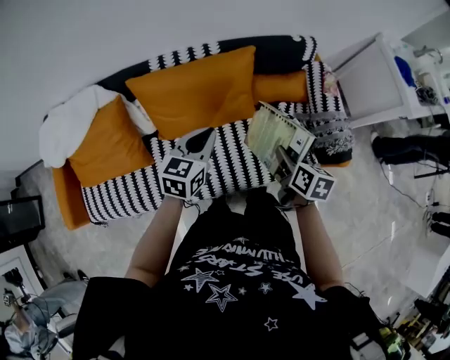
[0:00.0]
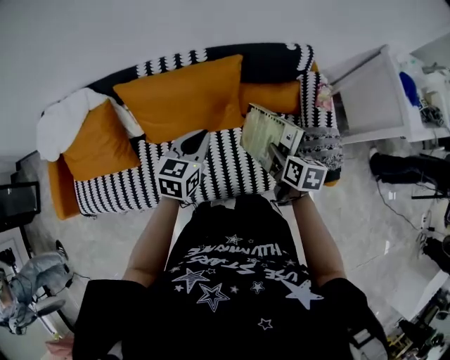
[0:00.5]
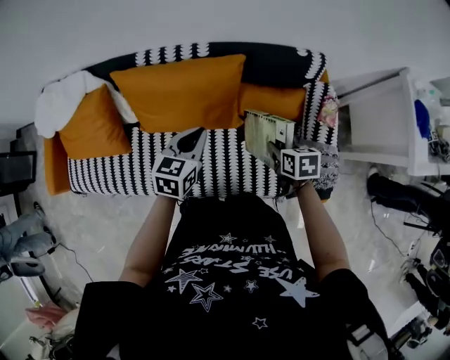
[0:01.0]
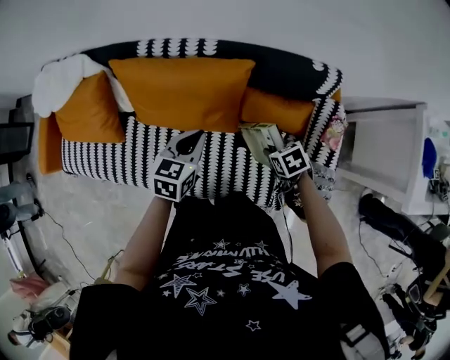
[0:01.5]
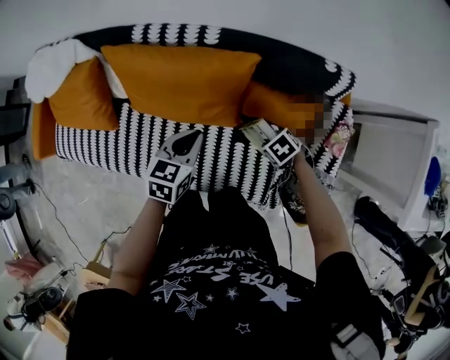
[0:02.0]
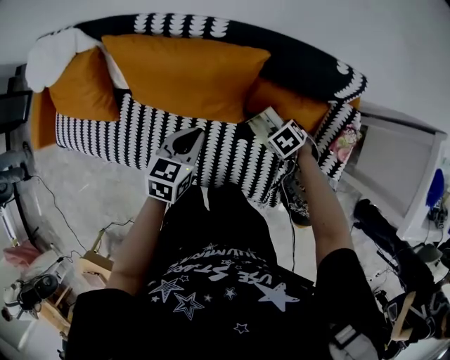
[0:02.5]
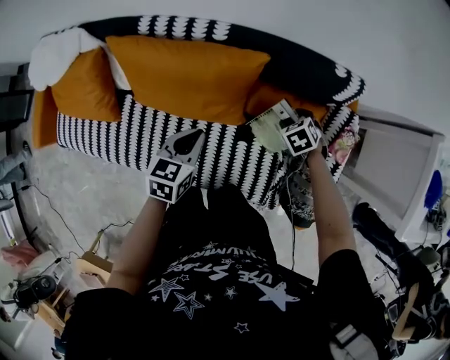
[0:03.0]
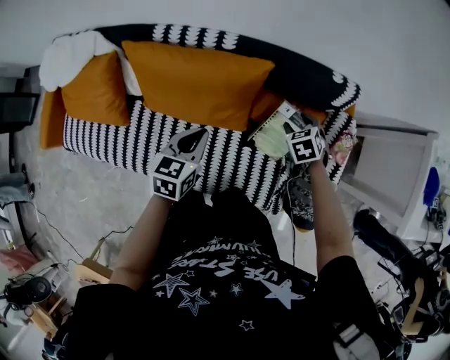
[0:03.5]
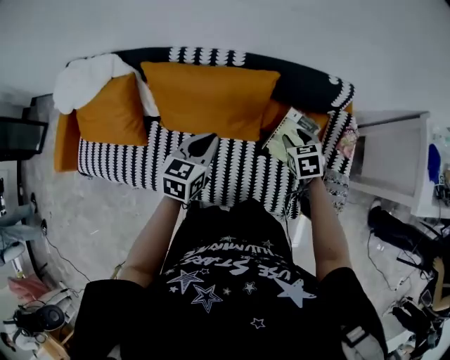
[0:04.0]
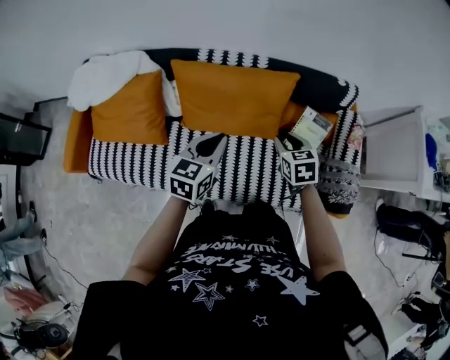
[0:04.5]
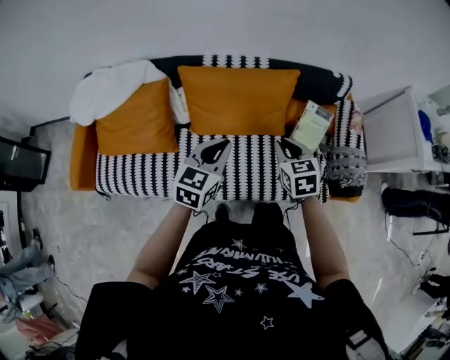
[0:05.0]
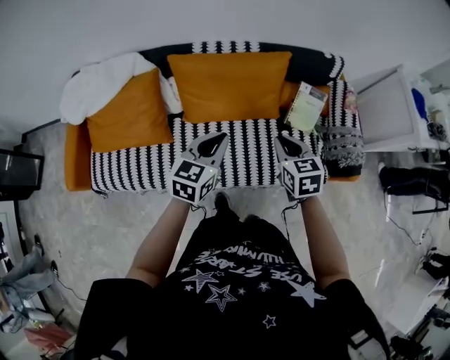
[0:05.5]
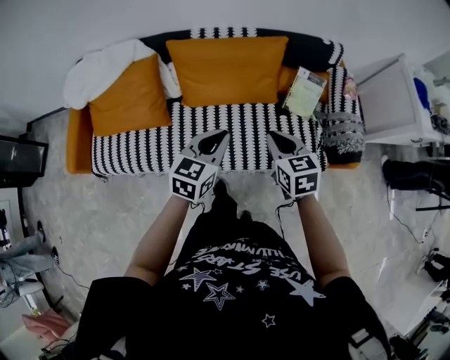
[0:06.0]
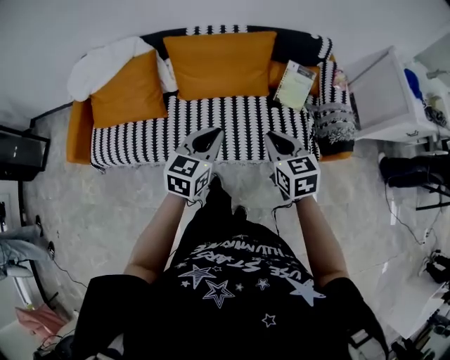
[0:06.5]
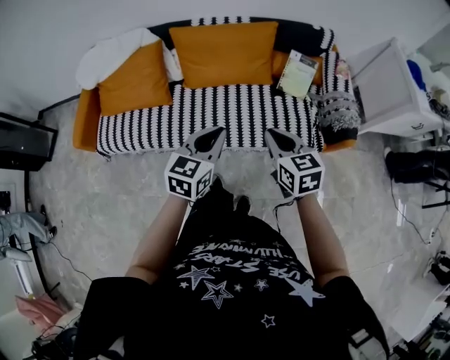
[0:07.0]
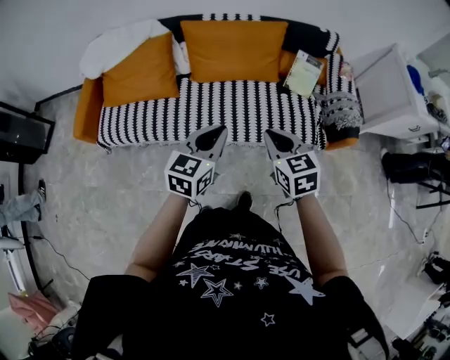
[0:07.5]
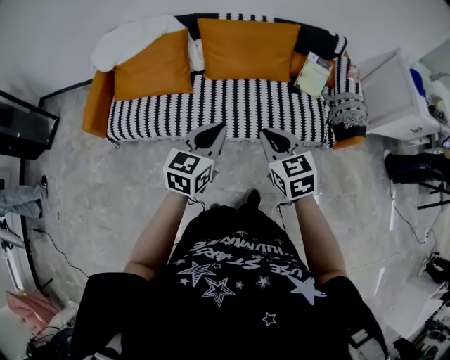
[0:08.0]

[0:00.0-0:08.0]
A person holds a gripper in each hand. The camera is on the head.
0:00.0 to 0:02.0: The right gripper is displaced downward by some 25 cm, and tips its fingers downward by some 40 degrees; the left gripper shifts by approximately 20 cm, and swivels about 30 degrees.
0:02.0 to 0:04.0: The left gripper travels upward by roughly 10 cm. The right gripper shifts about 15 cm upward, and swivels some 40 degrees.
0:04.0 to 0:06.0: The left gripper heads backward and to the left, covering roughly 25 cm. Meanwhile the right gripper goes about 35 cm backward, to the left and upward, changes its angle by about 20 degrees, and closes.
0:06.0 to 0:08.0: The left gripper heads backward, covering some 20 cm, while the right gripper goes approximately 25 cm backward and to the left.

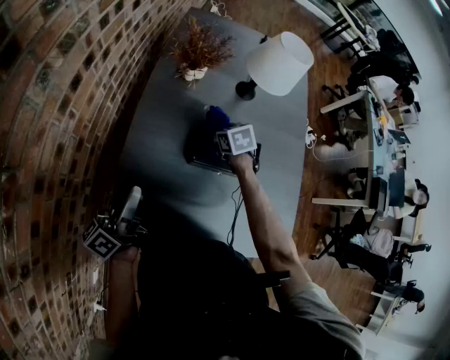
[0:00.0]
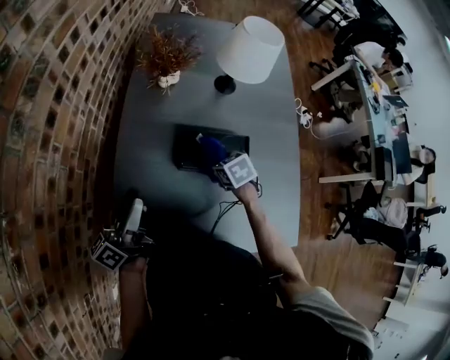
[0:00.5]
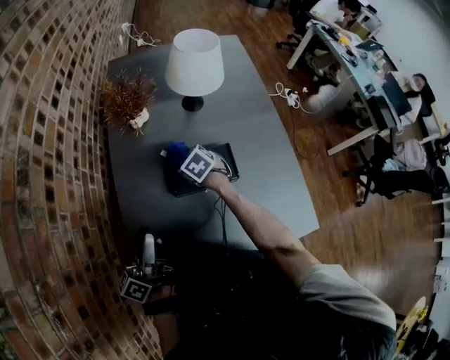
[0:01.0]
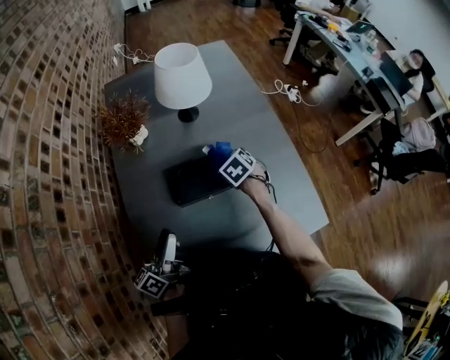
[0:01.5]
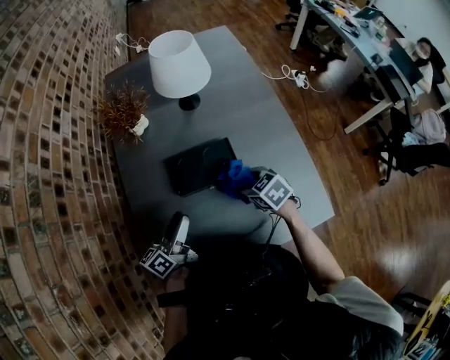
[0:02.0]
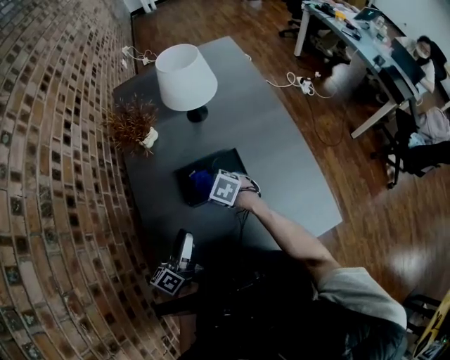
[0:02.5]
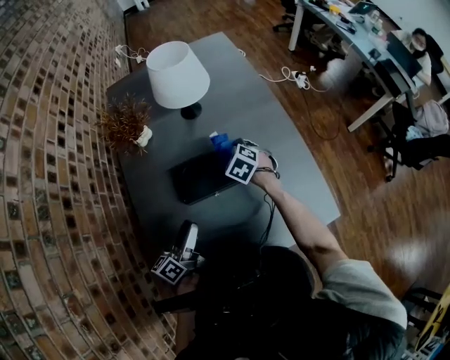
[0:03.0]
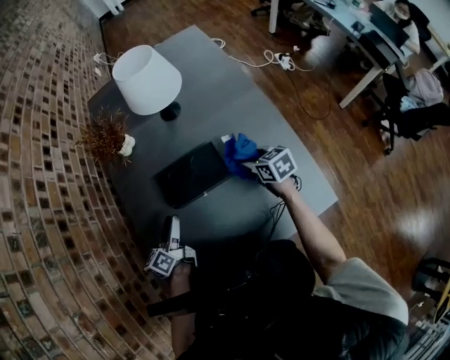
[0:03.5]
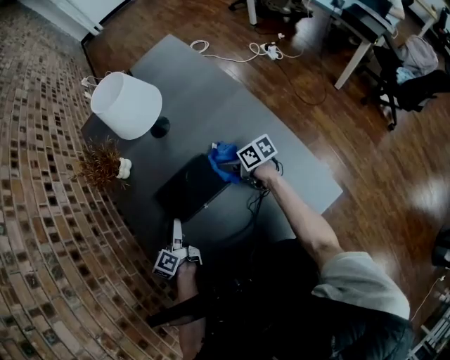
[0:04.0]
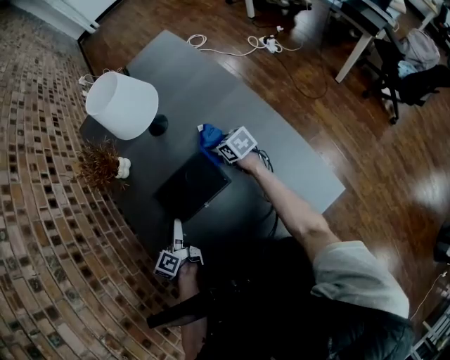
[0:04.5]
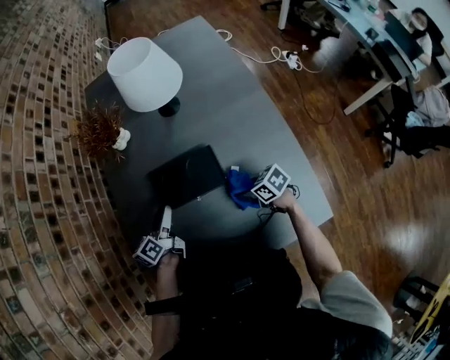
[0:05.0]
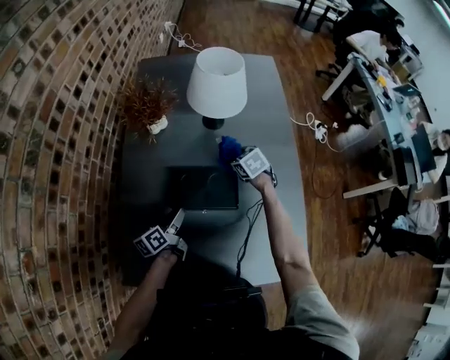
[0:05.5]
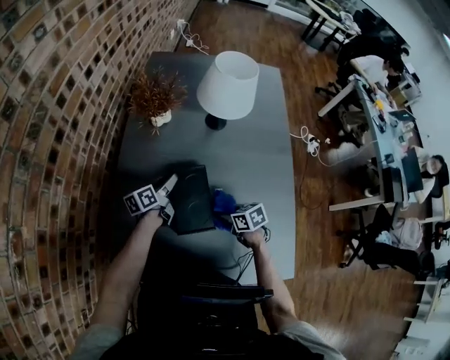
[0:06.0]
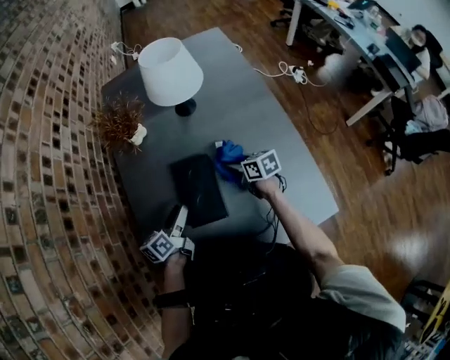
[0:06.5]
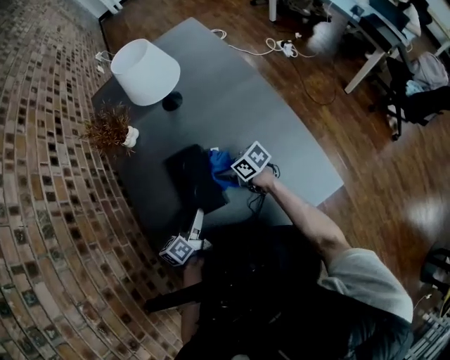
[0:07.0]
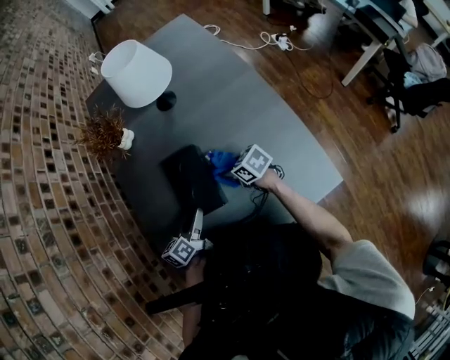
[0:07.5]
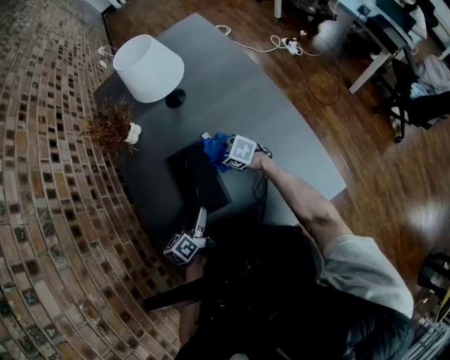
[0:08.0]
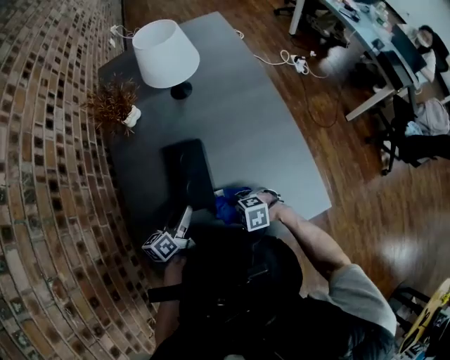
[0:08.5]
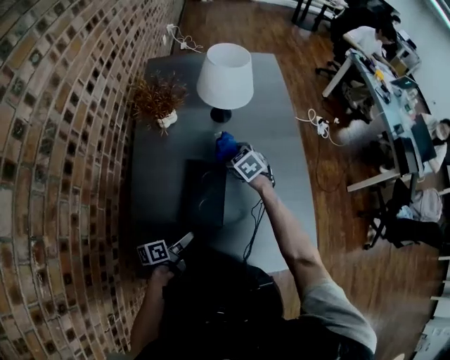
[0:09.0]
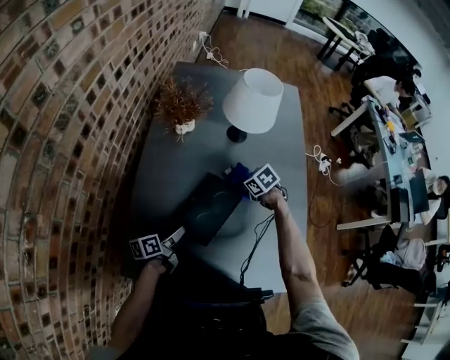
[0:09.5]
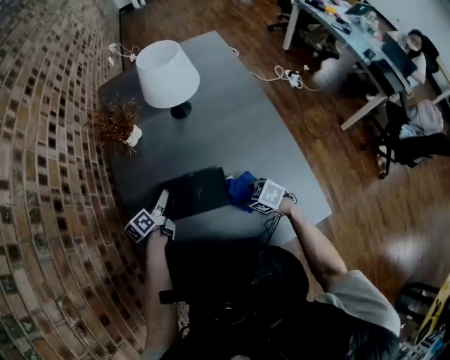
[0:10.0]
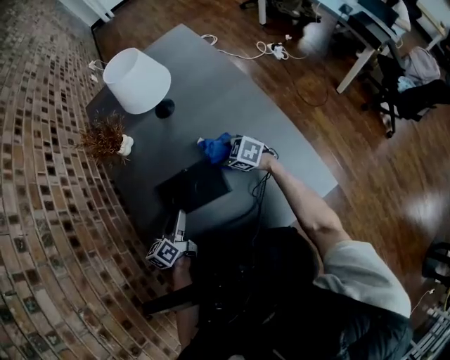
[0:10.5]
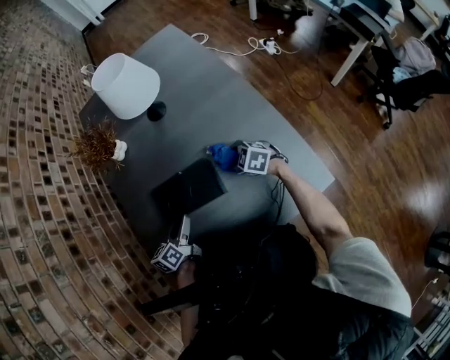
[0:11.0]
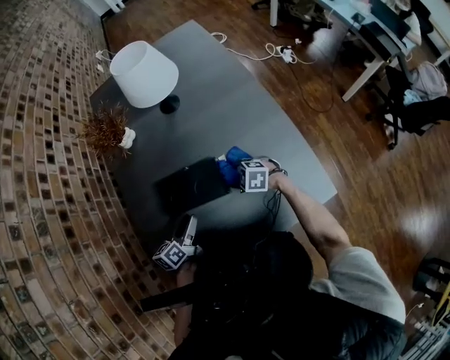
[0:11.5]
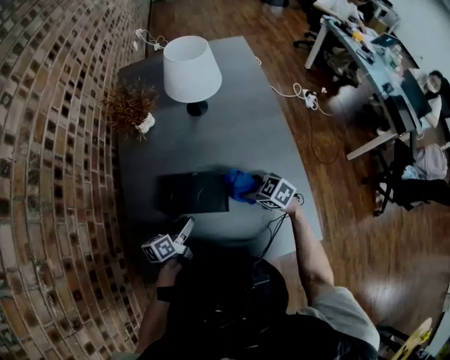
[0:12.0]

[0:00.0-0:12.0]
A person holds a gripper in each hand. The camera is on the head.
0:00.0 to 0:02.0: The left gripper is displaced to the right by roughly 20 cm, and rotates approximately 30 degrees; the right gripper swings forward and backward, approximately 20 cm each way, with 2 reversals.
0:02.0 to 0:04.0: The left gripper changes place by about 10 cm, while the right gripper ends up roughly 15 cm from where it was, and twists about 40 degrees clockwise, seen from behind.
0:04.0 to 0:06.0: The right gripper moves forward and backward over about 25 cm, changing direction 3 times, and swivels about 40 degrees. Meanwhile the left gripper shifts roughly 10 cm forward.
0:06.0 to 0:08.0: The left gripper shifts roughly 20 cm backward; the right gripper swings forward and backward, some 10 cm each way, with 2 reversals.
0:08.0 to 0:10.0: The left gripper changes place by about 15 cm; the right gripper goes upward and returns, some 10 cm each way.
0:10.0 to 0:12.0: The right gripper shifts approximately 5 cm upward, while the left gripper moves backward, approximately 15 cm.

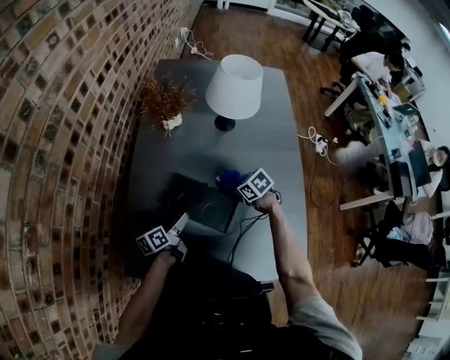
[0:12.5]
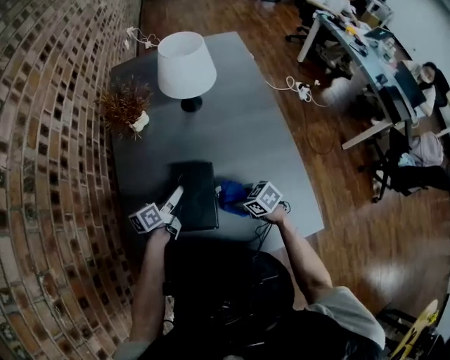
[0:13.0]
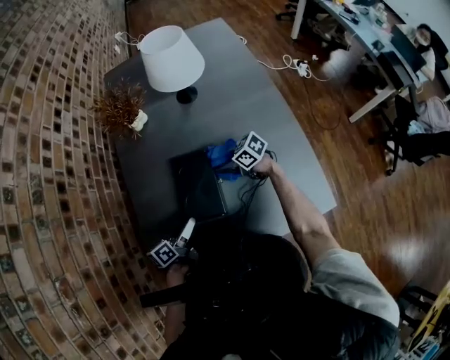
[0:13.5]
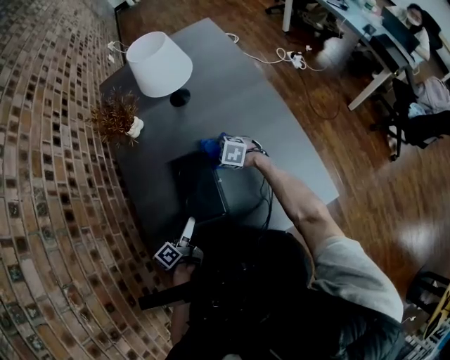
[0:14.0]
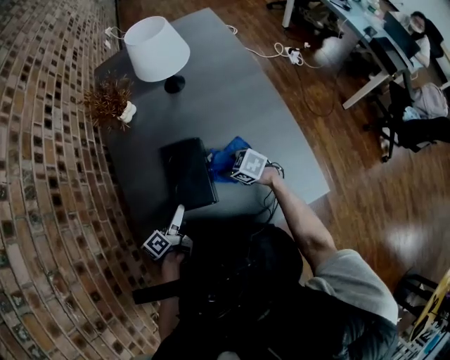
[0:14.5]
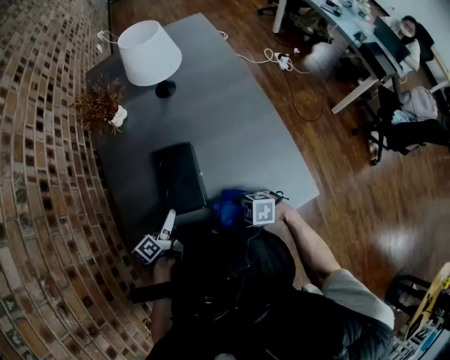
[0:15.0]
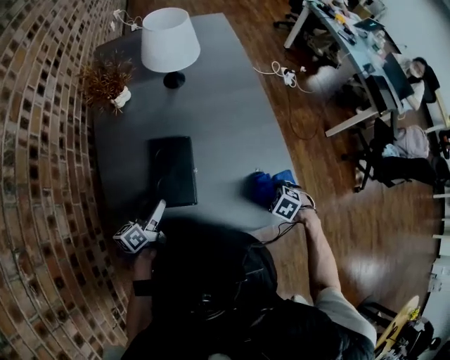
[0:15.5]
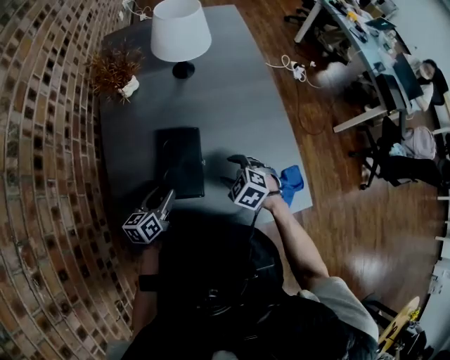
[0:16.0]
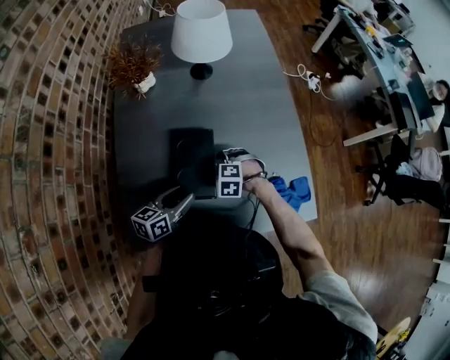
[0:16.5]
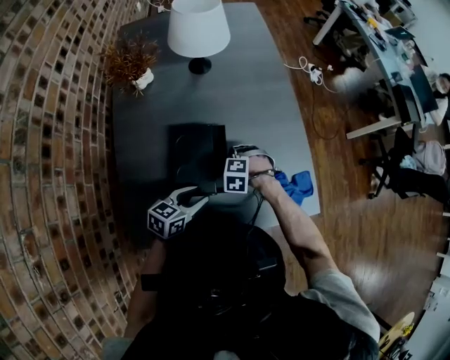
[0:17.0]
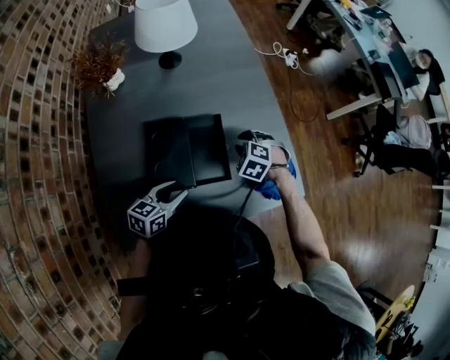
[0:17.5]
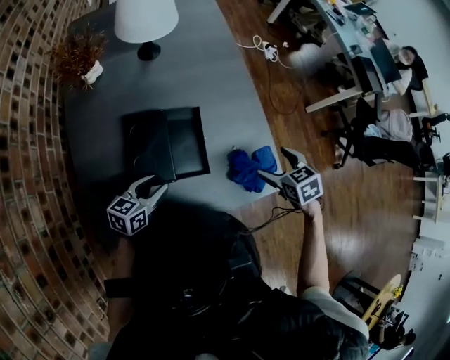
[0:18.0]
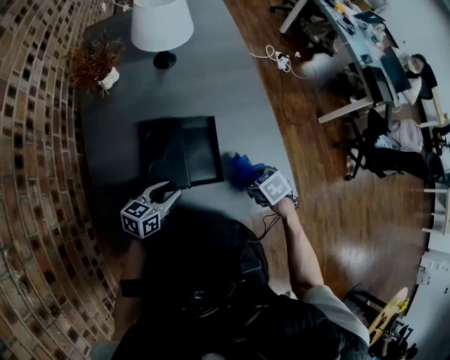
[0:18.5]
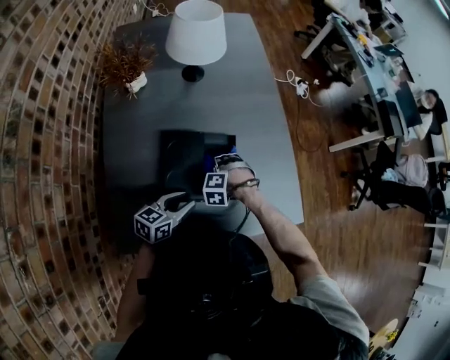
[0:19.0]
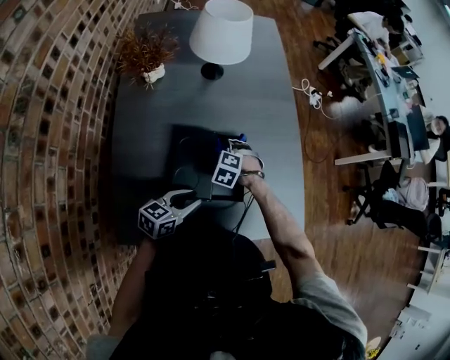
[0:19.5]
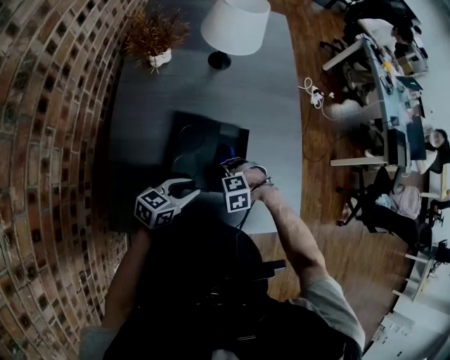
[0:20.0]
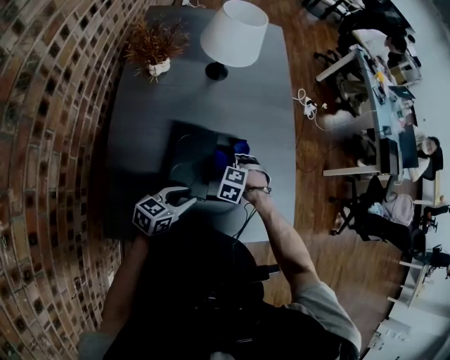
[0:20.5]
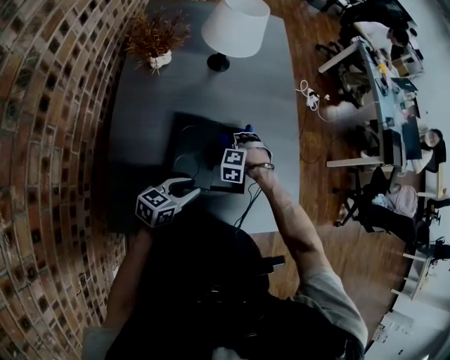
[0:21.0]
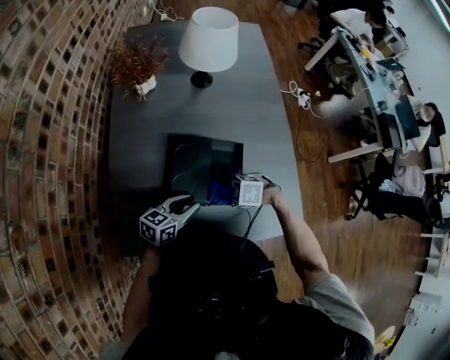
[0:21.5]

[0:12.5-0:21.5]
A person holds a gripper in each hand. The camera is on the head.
0:12.5 to 0:14.5: The left gripper shifts some 5 cm backward; the right gripper moves forward and backward over about 10 cm, changing direction 2 times.
0:14.5 to 0:17.0: The left gripper shifts by some 10 cm, and rolls clockwise, seen from behind, by about 40 degrees; the right gripper moves roughly 5 cm upward and comes back, rotates approximately 50 degrees, and opens, then closes again.
0:17.0 to 0:19.5: The right gripper reaches approximately 15 cm upward, then returns, and opens and closes again.
0:19.5 to 0:21.5: The right gripper ends up roughly 15 cm from where it was, and turns by roughly 30 degrees.
